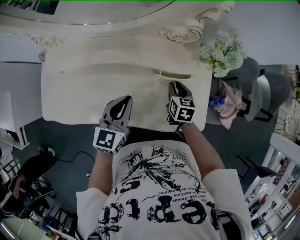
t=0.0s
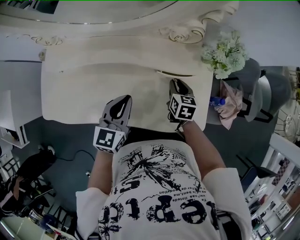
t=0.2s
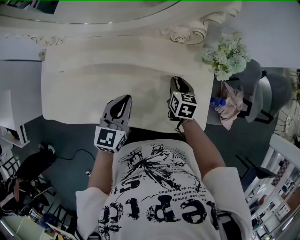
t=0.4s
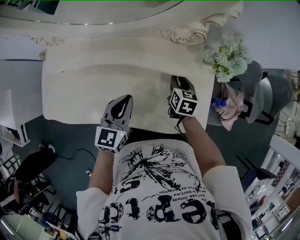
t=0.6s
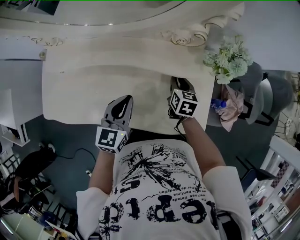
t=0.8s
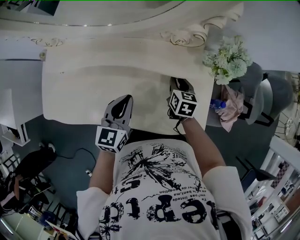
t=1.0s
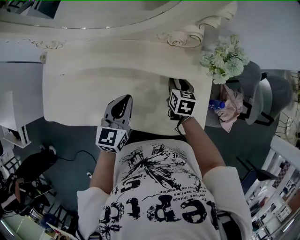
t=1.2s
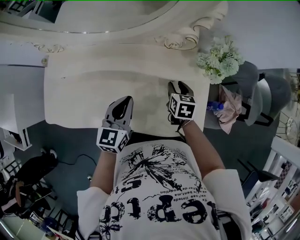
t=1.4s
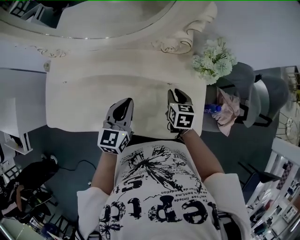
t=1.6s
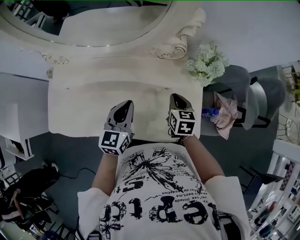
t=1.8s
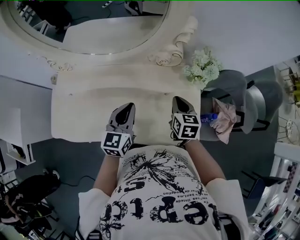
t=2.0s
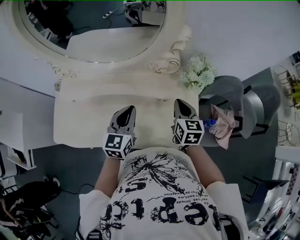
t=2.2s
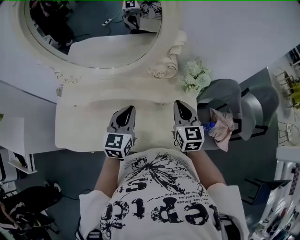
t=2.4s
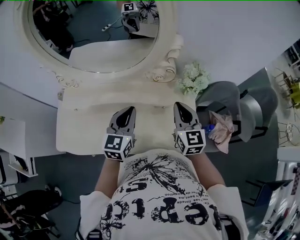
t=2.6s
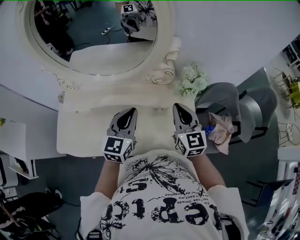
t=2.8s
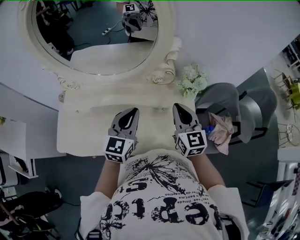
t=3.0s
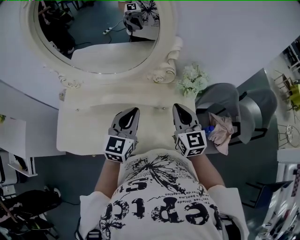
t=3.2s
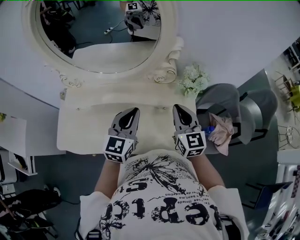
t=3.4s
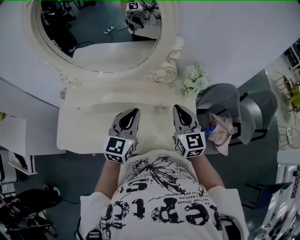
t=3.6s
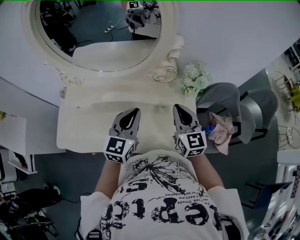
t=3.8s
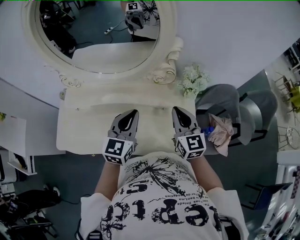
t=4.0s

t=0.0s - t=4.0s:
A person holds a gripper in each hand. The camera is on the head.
t=0.0s - t=1.4s: There are only small adjustments of the grippers.
t=1.4s - t=2.6s: The right gripper moves upward, roughly 25 cm, angles its fingers upward, by about 40 degrees, and closes, while the left gripper goes about 10 cm upward.
t=2.6s - t=4.0s: The grippers stay close to where they were, moving slightly.

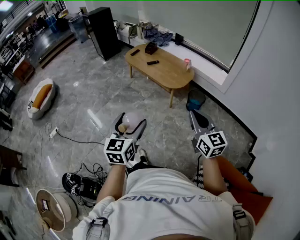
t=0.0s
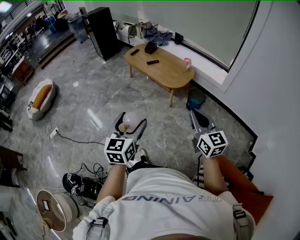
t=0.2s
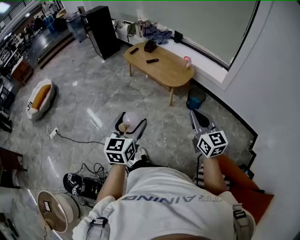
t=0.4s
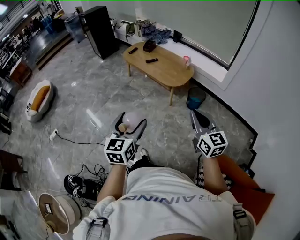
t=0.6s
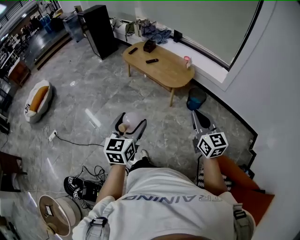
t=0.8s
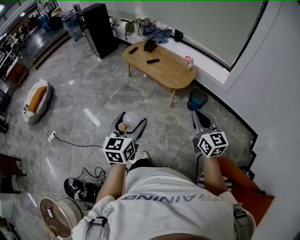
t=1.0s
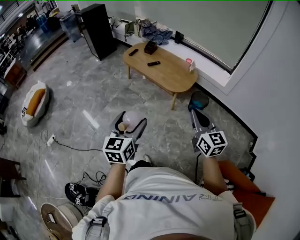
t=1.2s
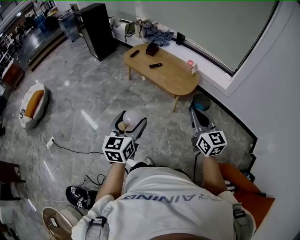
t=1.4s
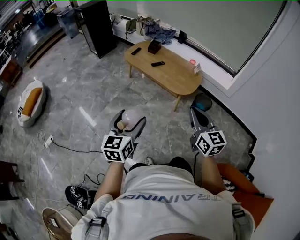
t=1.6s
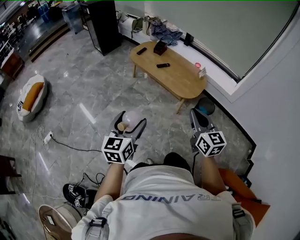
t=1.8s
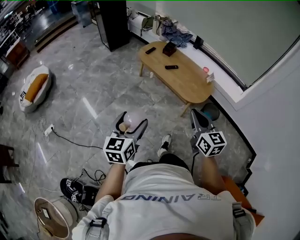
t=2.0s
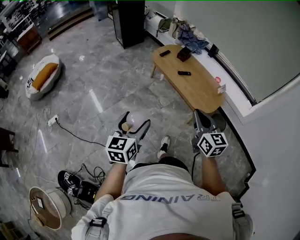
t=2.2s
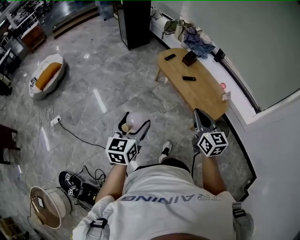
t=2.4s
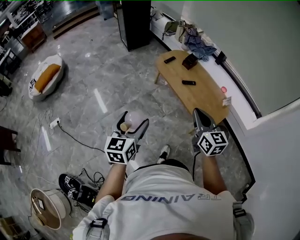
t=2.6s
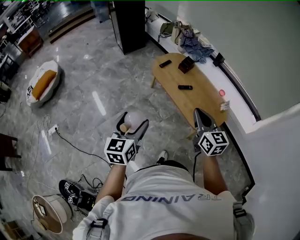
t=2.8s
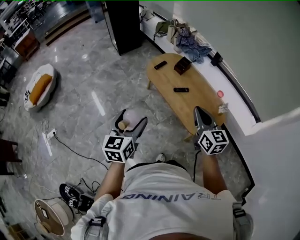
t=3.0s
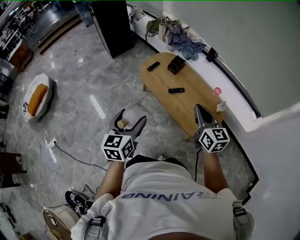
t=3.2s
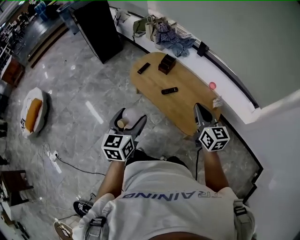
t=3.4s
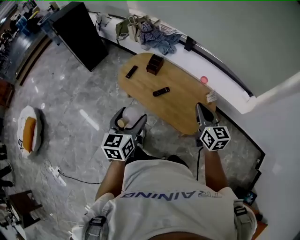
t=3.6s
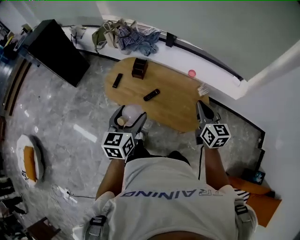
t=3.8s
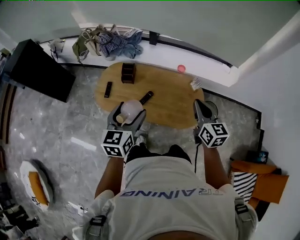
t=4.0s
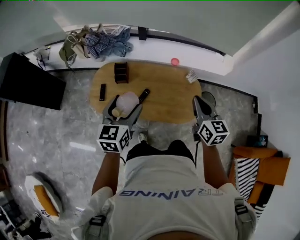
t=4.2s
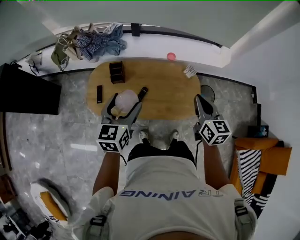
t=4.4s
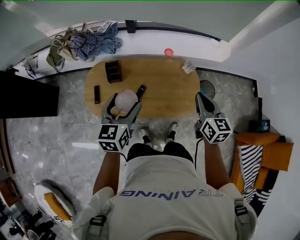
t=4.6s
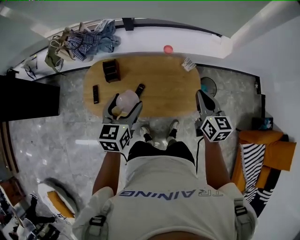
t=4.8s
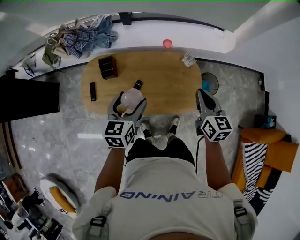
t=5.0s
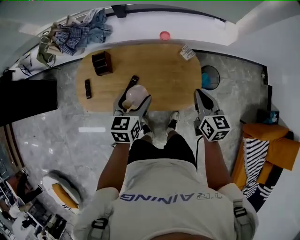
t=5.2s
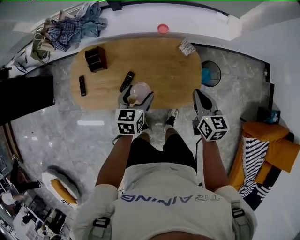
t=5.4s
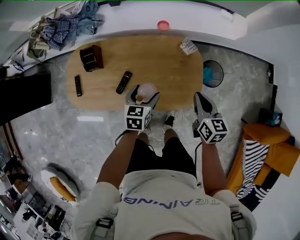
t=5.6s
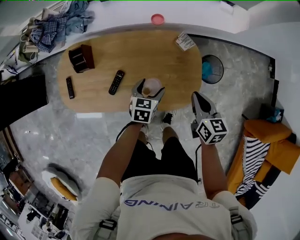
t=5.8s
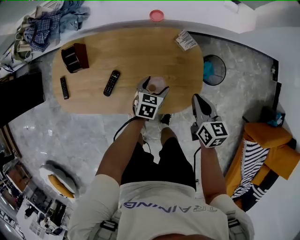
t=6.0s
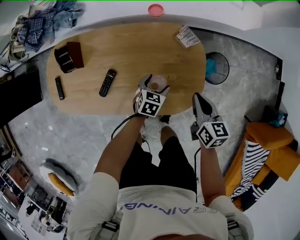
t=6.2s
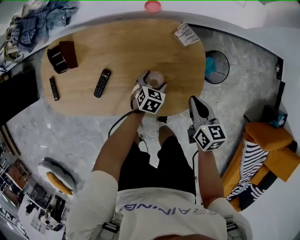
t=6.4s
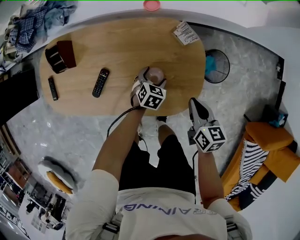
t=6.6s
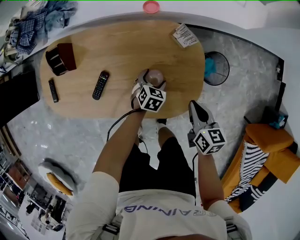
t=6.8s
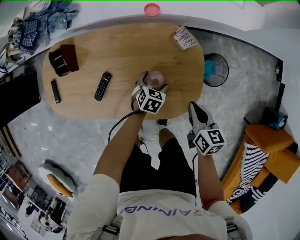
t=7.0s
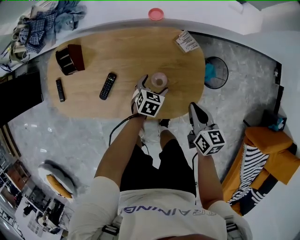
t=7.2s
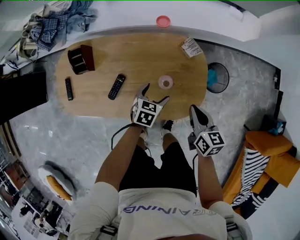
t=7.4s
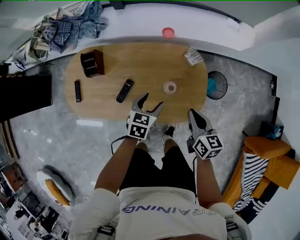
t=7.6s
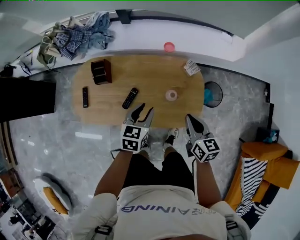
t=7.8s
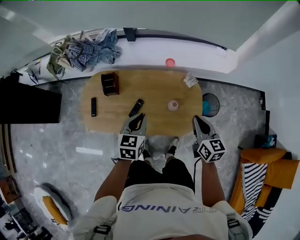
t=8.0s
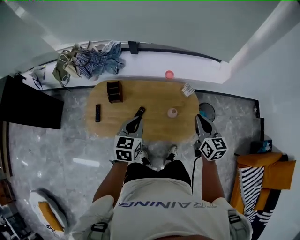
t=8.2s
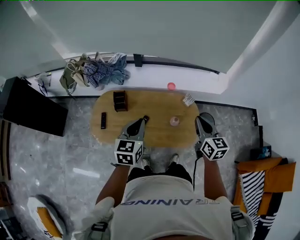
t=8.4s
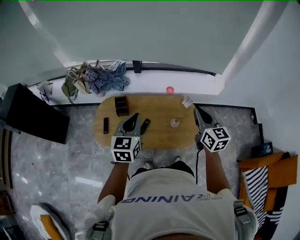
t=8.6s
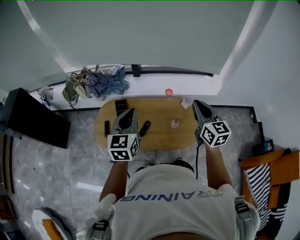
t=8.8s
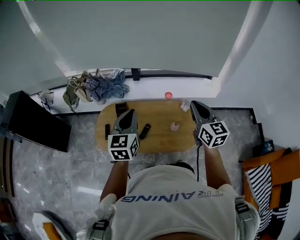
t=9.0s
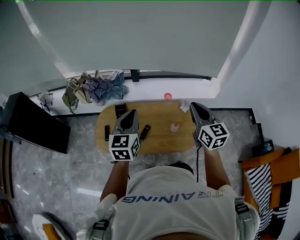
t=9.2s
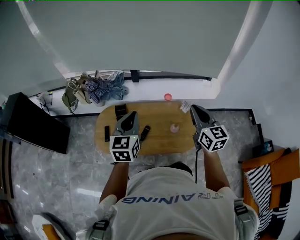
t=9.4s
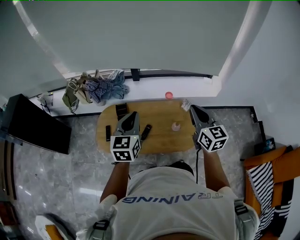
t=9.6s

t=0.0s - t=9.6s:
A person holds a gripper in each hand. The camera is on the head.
t=0.0s - t=1.6s: The two grippers go some 25 cm forward and to the left.
t=1.6s - t=3.2s: The two grippers travel together, forward, some 40 cm.
t=3.2s - t=4.8s: The right gripper shifts by about 20 cm, and swivels approximately 50 degrees; the left gripper shifts by roughly 40 cm, and changes its angle by roughly 50 degrees.
t=4.8s - t=6.4s: The left gripper is displaced downward and to the right by some 60 cm, and points its fingers about 30 degrees further downward. The right gripper moves downward, approximately 35 cm, and swivels some 20 degrees.
t=6.4s - t=8.0s: The right gripper shifts about 25 cm upward. The left gripper is displaced upward and to the left by about 40 cm, changes its angle by approximately 30 degrees, and closes.
t=8.0s - t=9.6s: The two grippers go roughly 25 cm upward. The right gripper rotates roughly 20 degrees. Meanwhile the left gripper rotates about 20 degrees.

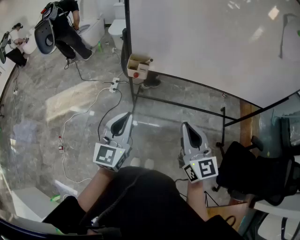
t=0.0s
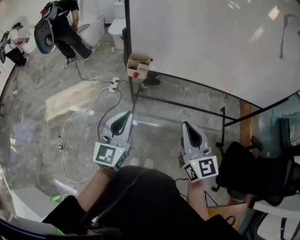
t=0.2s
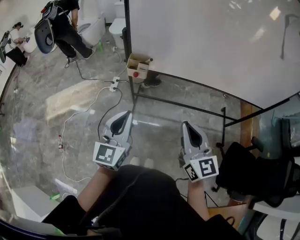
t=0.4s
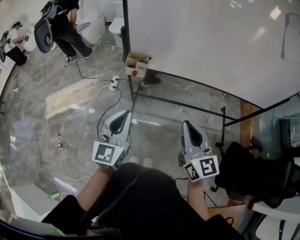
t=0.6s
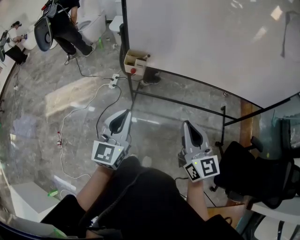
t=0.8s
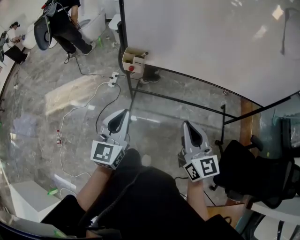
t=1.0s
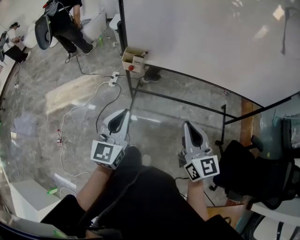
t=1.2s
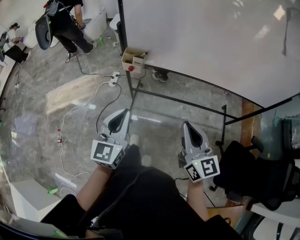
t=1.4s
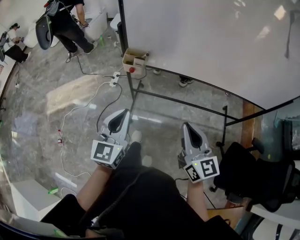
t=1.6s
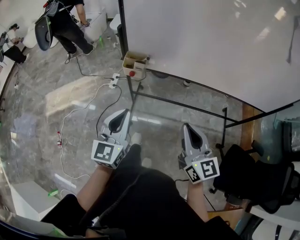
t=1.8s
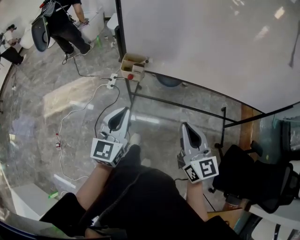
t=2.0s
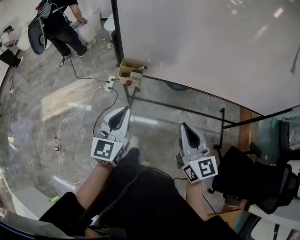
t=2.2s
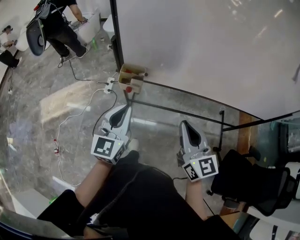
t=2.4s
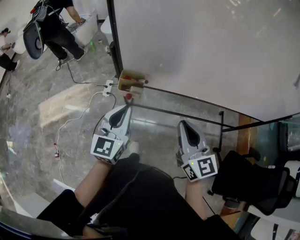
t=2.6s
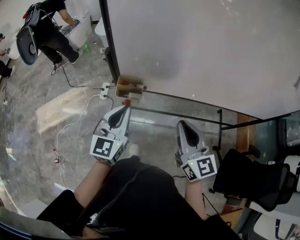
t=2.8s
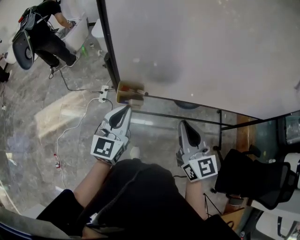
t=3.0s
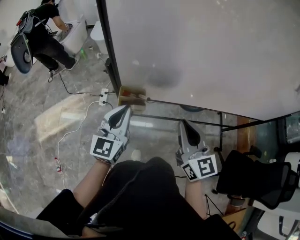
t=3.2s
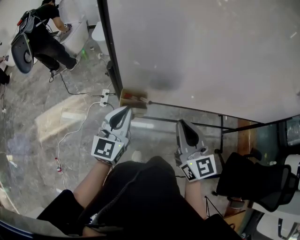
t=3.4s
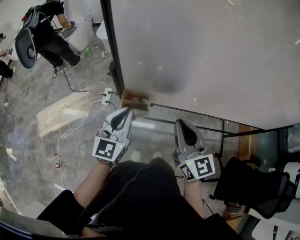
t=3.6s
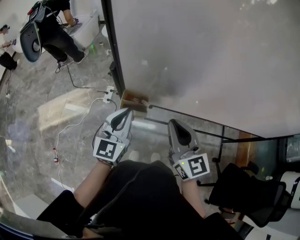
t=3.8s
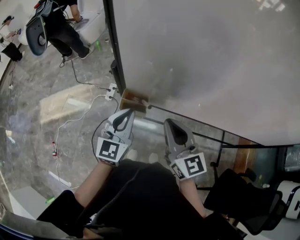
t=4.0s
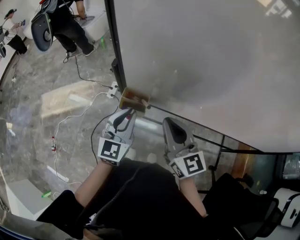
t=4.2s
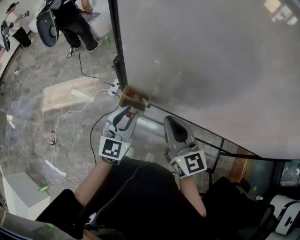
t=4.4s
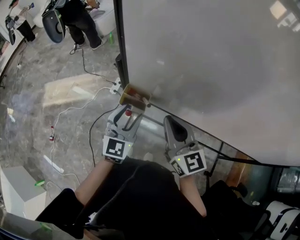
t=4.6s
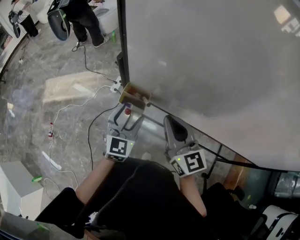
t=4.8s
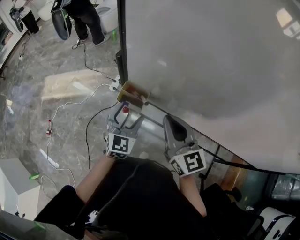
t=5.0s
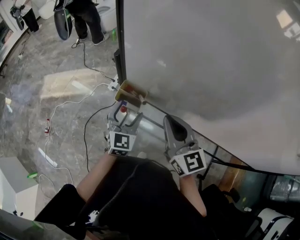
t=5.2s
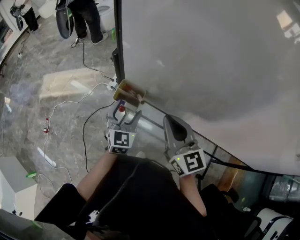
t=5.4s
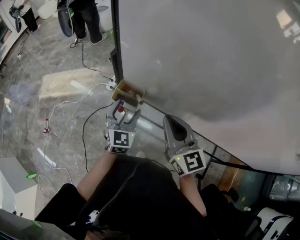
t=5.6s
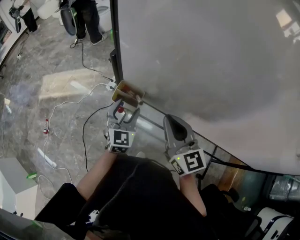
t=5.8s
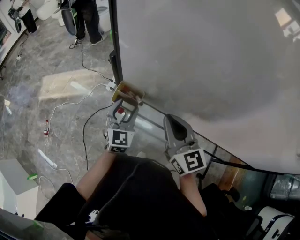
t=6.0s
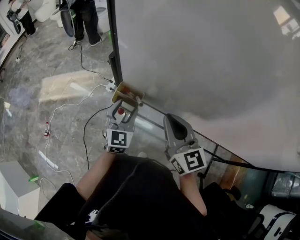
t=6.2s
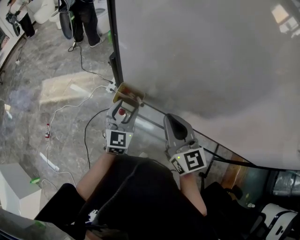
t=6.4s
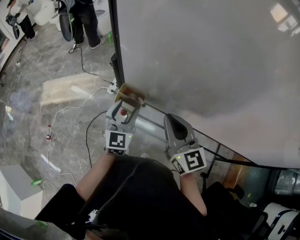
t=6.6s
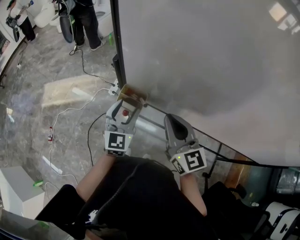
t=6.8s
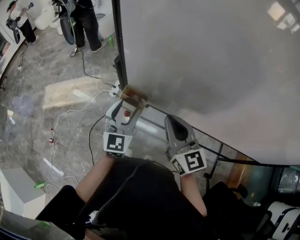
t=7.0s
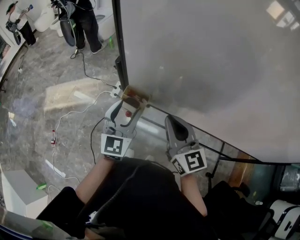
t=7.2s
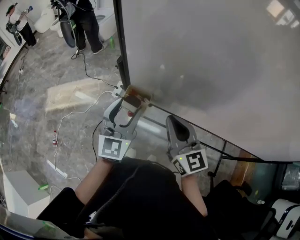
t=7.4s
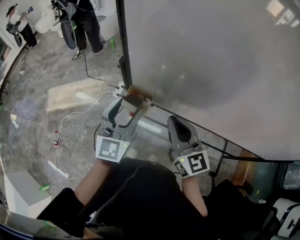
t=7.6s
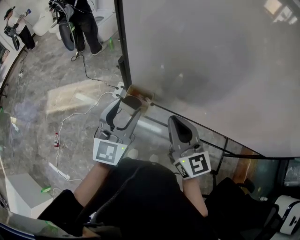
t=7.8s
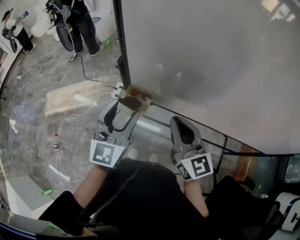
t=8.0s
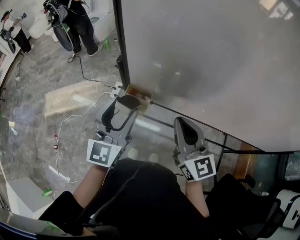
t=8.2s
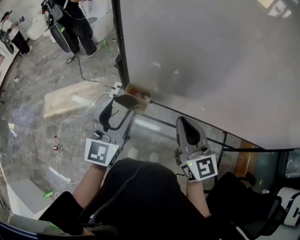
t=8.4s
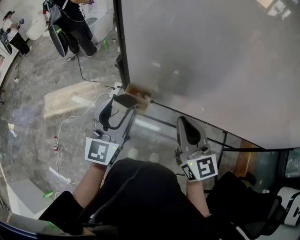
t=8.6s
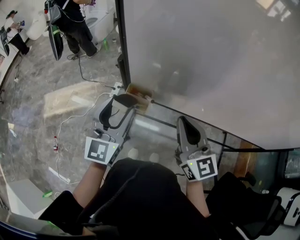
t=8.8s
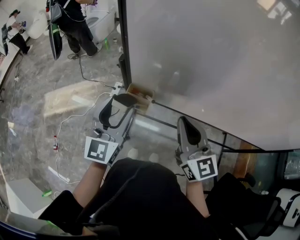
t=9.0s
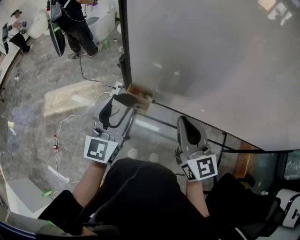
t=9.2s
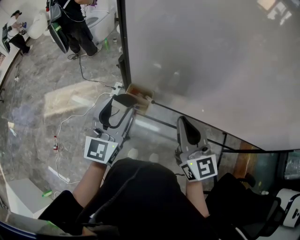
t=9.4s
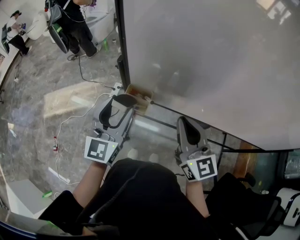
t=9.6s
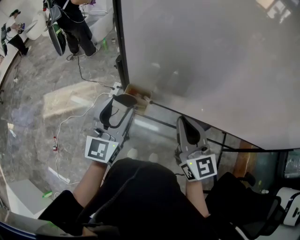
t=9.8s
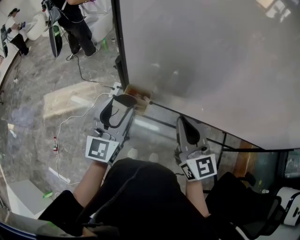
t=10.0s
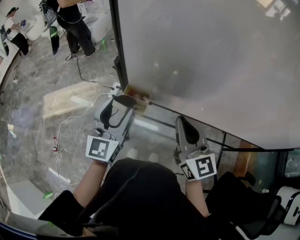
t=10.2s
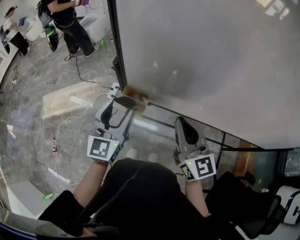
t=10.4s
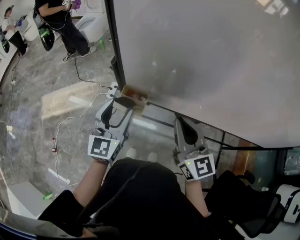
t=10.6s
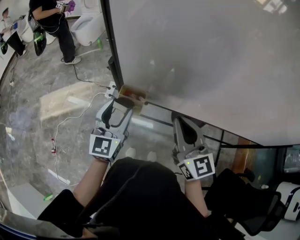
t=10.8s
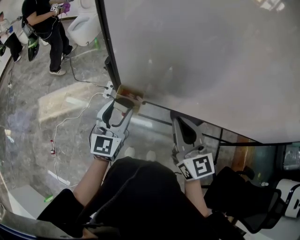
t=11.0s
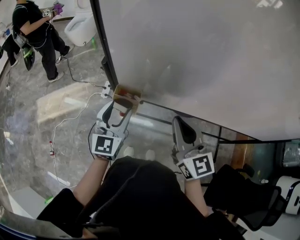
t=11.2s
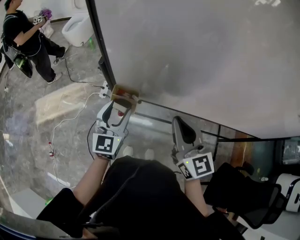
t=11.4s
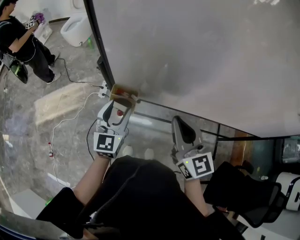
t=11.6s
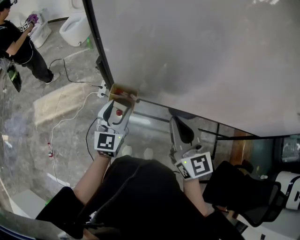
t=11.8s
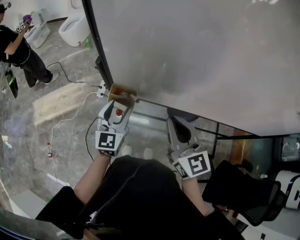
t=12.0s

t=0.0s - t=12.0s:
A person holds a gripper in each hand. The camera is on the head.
t=0.0s - t=1.6s: The grippers make only small movements.
t=1.6s - t=3.0s: The two grippers go about 20 cm forward.
t=3.0s - t=4.4s: The left gripper ends up about 5 cm from where it was; the right gripper heads forward, covering about 10 cm, and swivels roughly 20 degrees.
t=4.4s - t=6.0s: The left gripper moves downward, some 5 cm, and opens.
t=6.0s - t=7.6s: The left gripper moves upward, approximately 15 cm.
t=7.6s - t=10.4s: The grippers move only a little.
t=10.4s - t=12.0s: The left gripper shifts about 10 cm downward.
